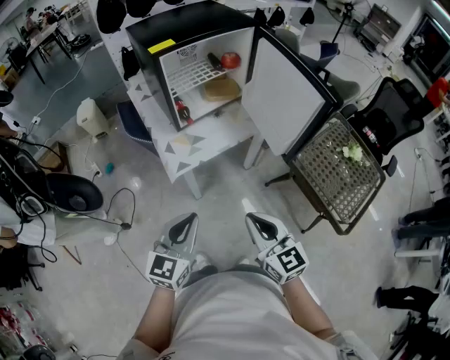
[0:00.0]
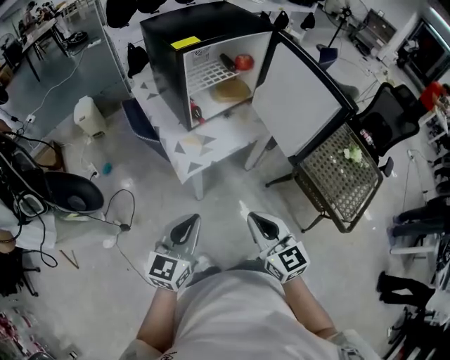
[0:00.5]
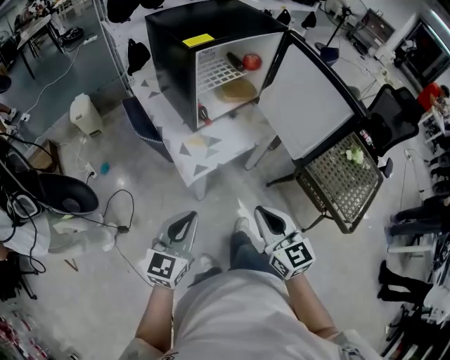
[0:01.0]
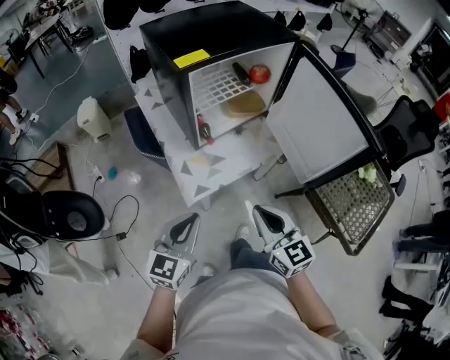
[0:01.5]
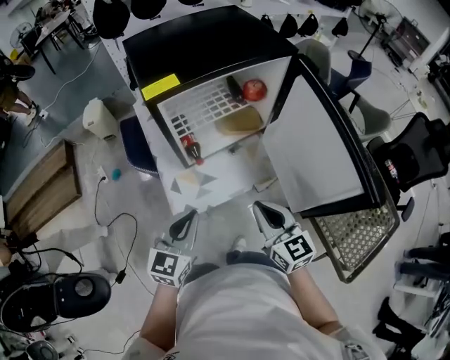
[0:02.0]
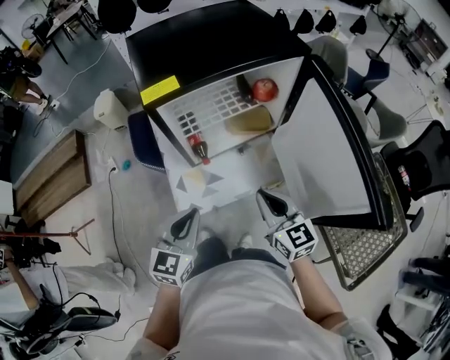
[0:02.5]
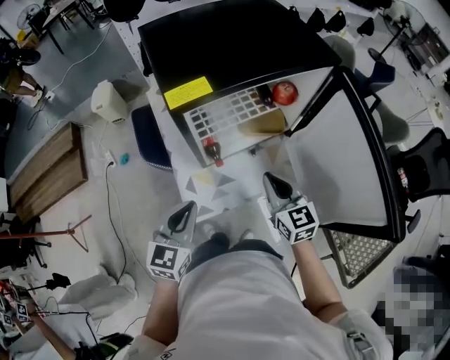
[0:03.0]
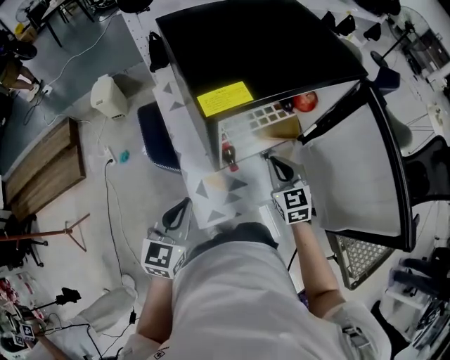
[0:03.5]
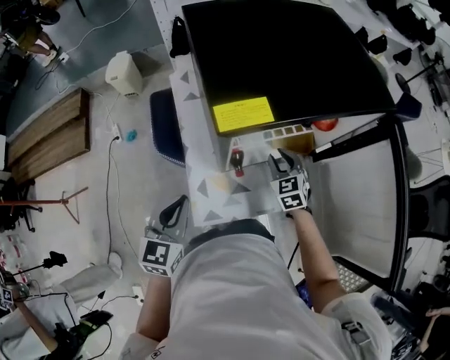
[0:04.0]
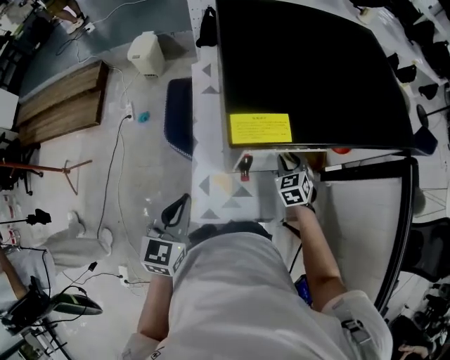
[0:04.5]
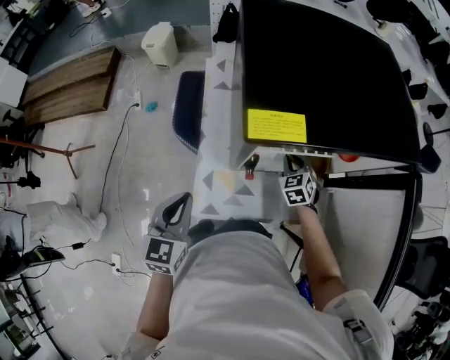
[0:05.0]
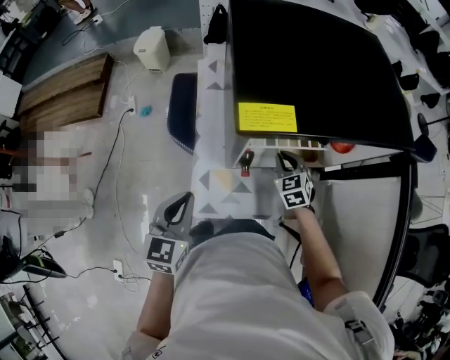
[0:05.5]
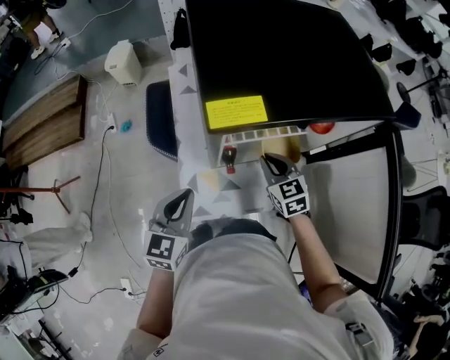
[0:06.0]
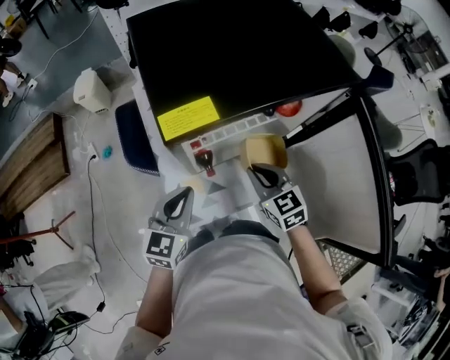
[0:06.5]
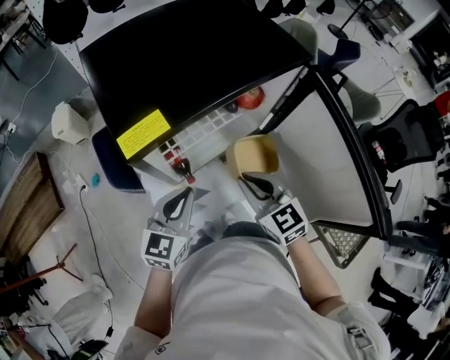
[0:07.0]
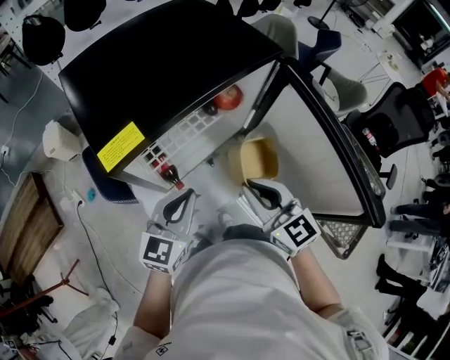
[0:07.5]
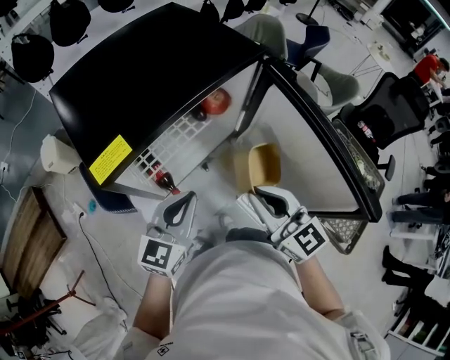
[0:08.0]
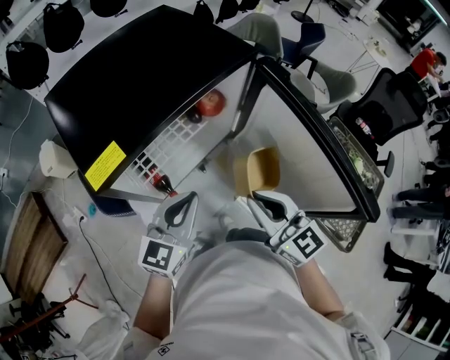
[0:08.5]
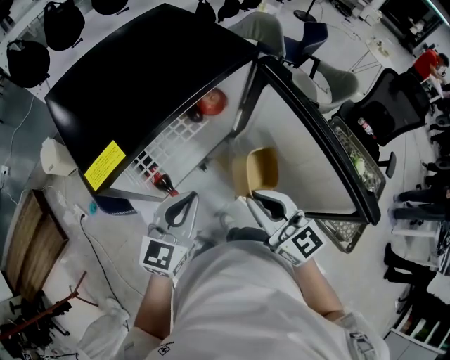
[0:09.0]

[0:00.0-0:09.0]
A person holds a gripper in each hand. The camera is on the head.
0:00.0 to 0:02.0: Both grippers move forward, some 25 cm.
0:02.0 to 0:04.5: The right gripper goes some 40 cm forward and downward, points its fingers roughly 30 degrees further downward, and opens, while the left gripper shifts roughly 20 cm to the left and forward, and swivels some 30 degrees.
0:04.5 to 0:07.0: The right gripper heads upward and backward, covering some 25 cm, and rotates about 30 degrees. Meanwhile the left gripper is displaced to the right by roughly 15 cm, and rotates approximately 30 degrees.
0:07.0 to 0:09.0: The left gripper shifts some 10 cm to the right, while the right gripper travels to the right and upward by about 10 cm, and changes its angle by approximately 20 degrees.

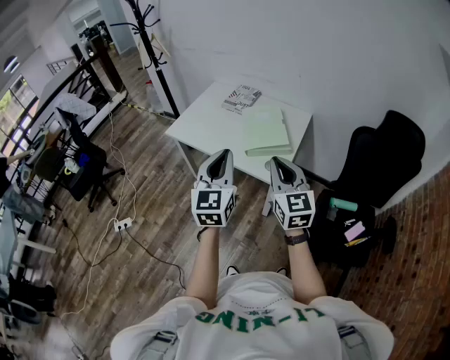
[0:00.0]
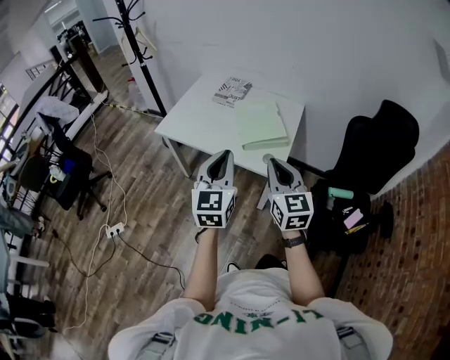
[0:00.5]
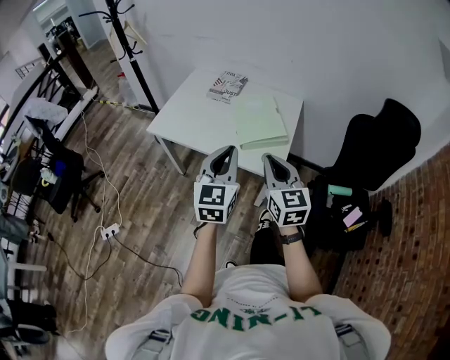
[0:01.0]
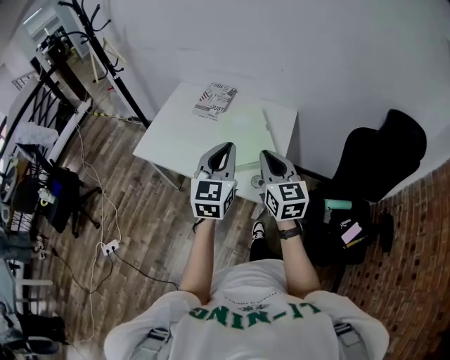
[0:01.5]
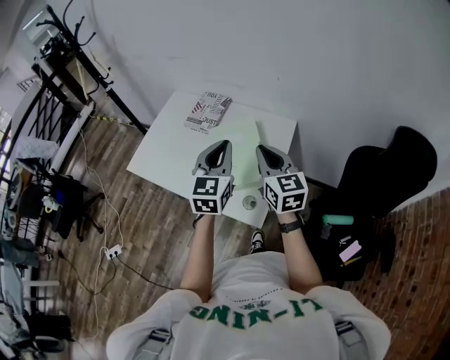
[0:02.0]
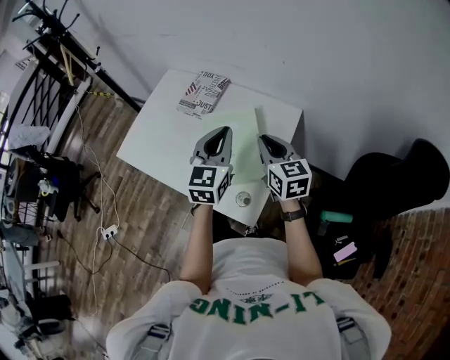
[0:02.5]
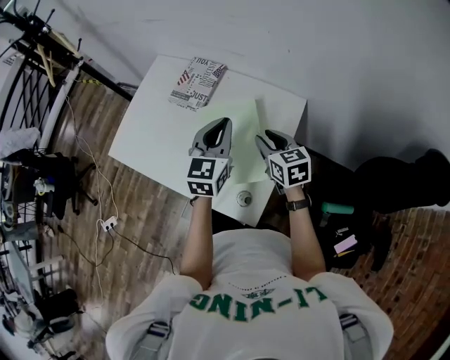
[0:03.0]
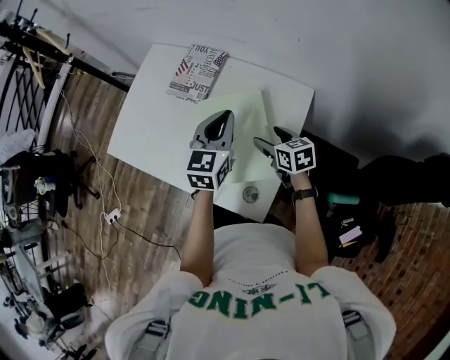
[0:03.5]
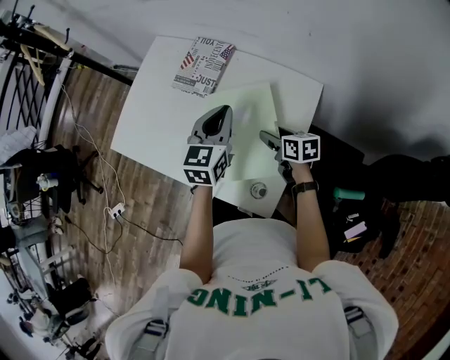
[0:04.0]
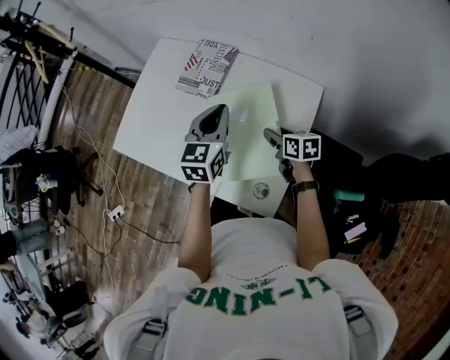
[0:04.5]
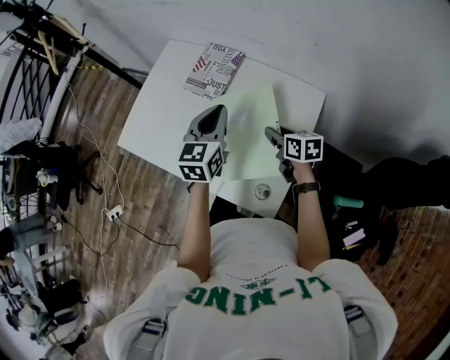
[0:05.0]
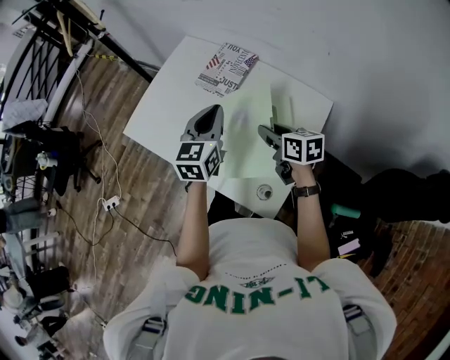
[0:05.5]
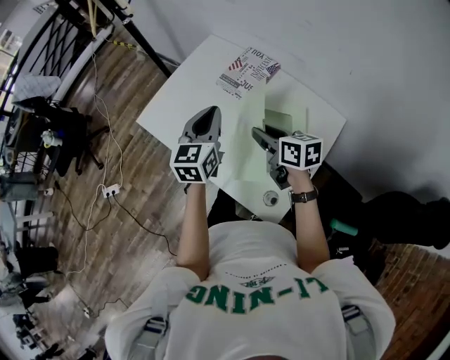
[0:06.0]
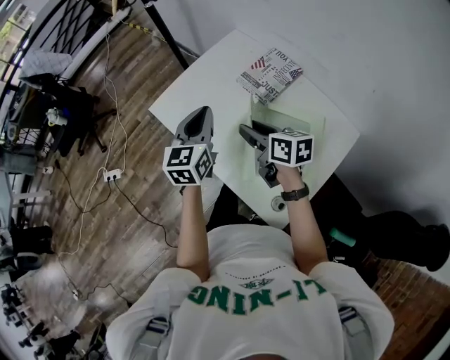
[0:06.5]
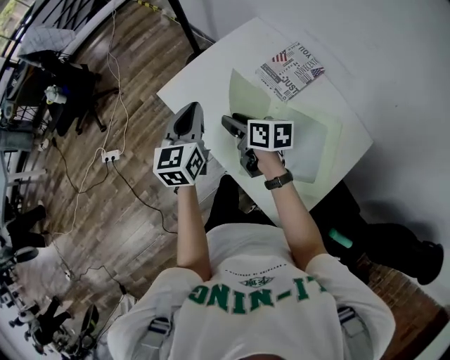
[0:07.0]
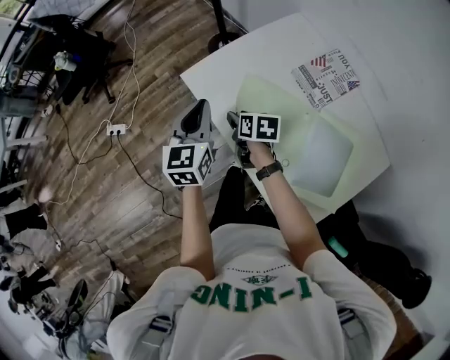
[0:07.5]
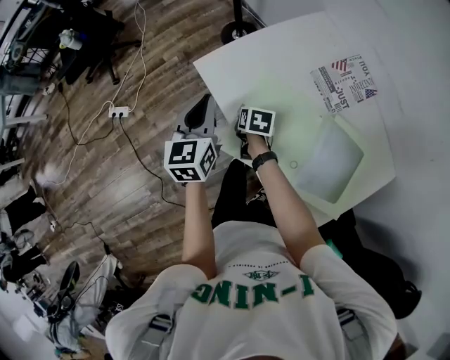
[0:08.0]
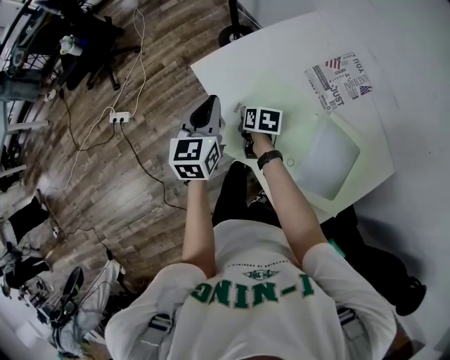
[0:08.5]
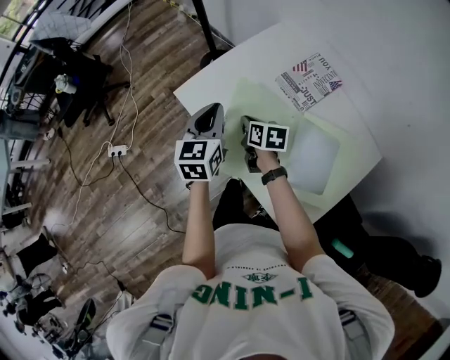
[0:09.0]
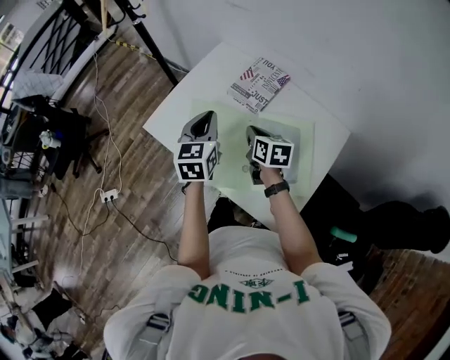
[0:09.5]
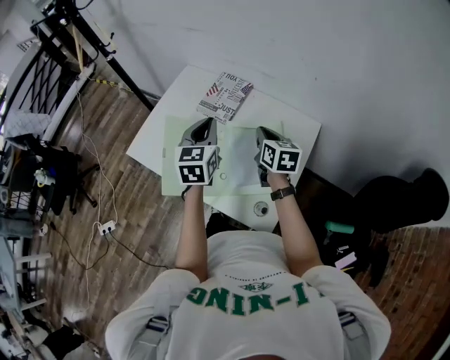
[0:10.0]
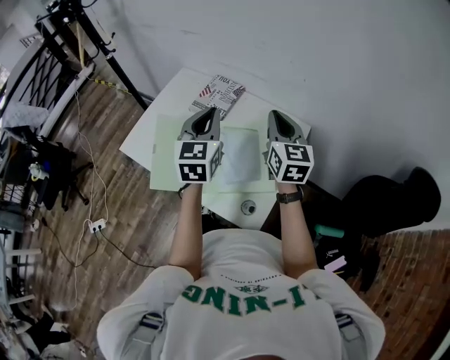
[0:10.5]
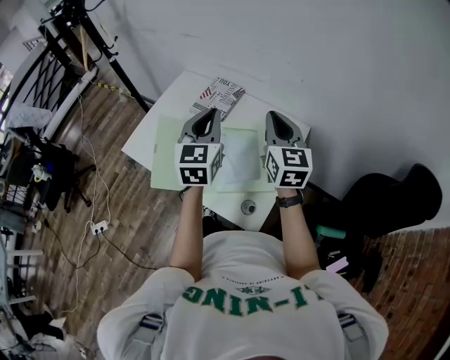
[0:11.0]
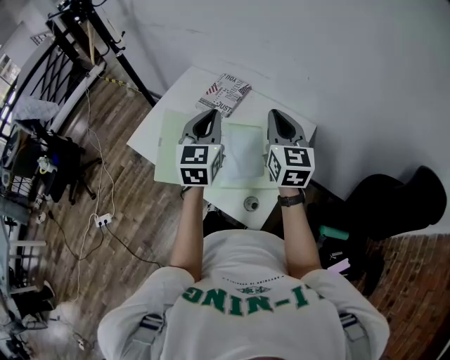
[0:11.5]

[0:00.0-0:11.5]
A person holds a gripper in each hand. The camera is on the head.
0:00.0 to 0:02.0: The grippers both shift forward by approximately 35 cm.
0:02.0 to 0:04.0: The right gripper goes about 35 cm downward and forward, changes its angle by about 50 degrees, and opens up. The left gripper heads forward and downward, covering some 25 cm.
0:04.0 to 0:06.0: The left gripper travels to the left by roughly 15 cm. The right gripper heads to the left and upward, covering about 20 cm, turns by some 20 degrees, and closes up.
0:06.0 to 0:07.5: The right gripper heads to the left, forward and downward, covering approximately 35 cm, and turns by some 20 degrees. Meanwhile the left gripper heads to the left and forward, covering roughly 25 cm, and rotates some 20 degrees.
0:07.5 to 0:09.5: The left gripper shifts by approximately 20 cm, and rotates about 20 degrees; the right gripper shifts by approximately 25 cm, swivels about 30 degrees, and closes.
0:09.5 to 0:11.5: The left gripper goes some 20 cm to the right, upward and backward. Meanwhile the right gripper moves upward, to the right and backward, about 30 cm, and turns by about 40 degrees.

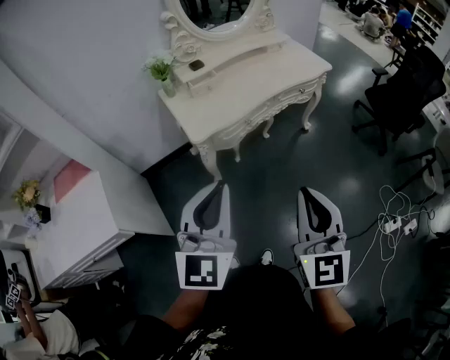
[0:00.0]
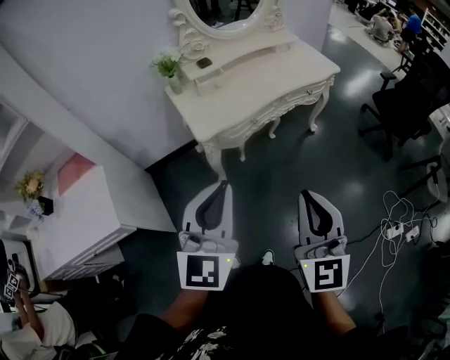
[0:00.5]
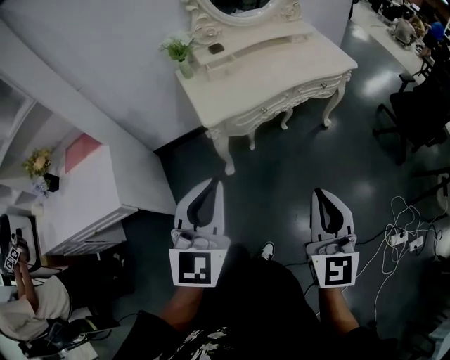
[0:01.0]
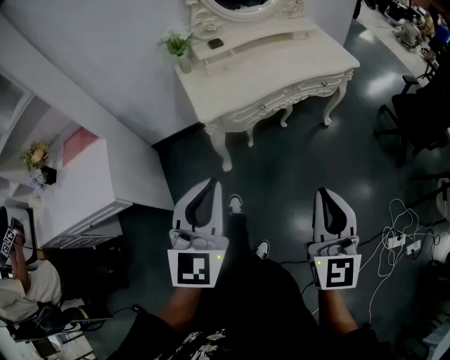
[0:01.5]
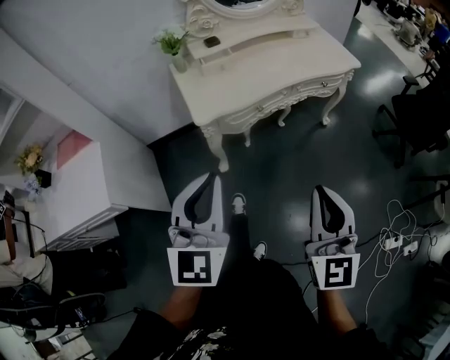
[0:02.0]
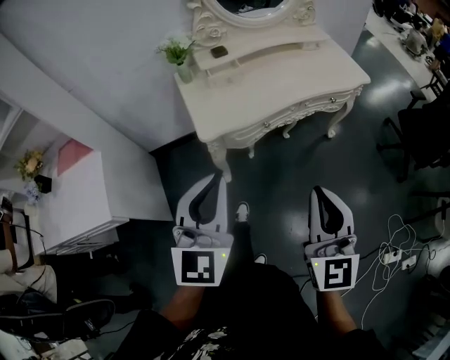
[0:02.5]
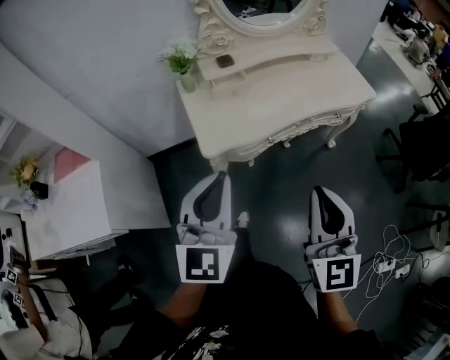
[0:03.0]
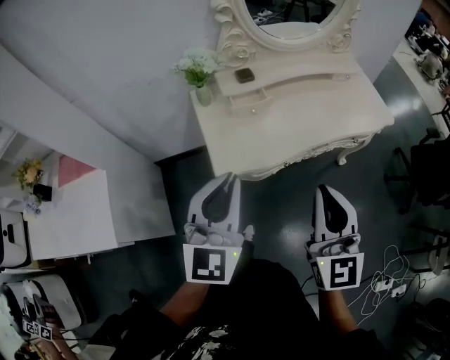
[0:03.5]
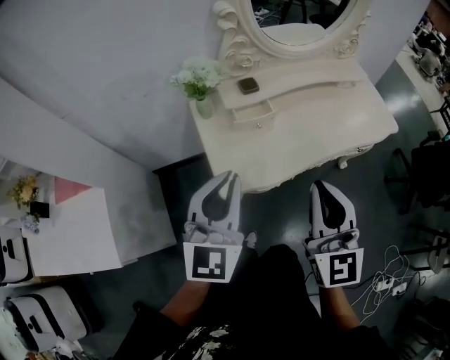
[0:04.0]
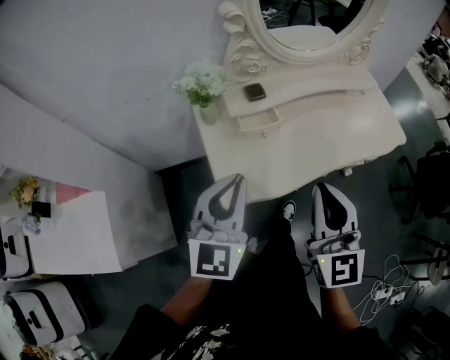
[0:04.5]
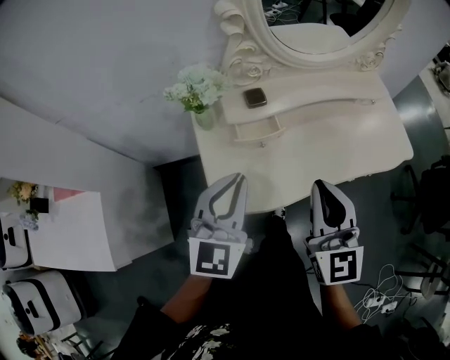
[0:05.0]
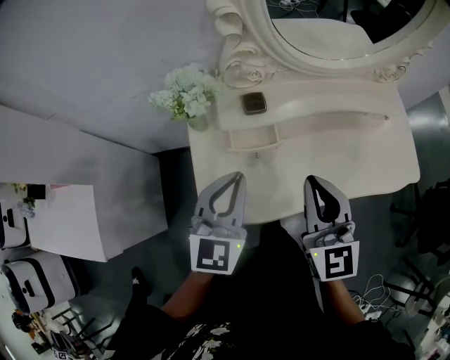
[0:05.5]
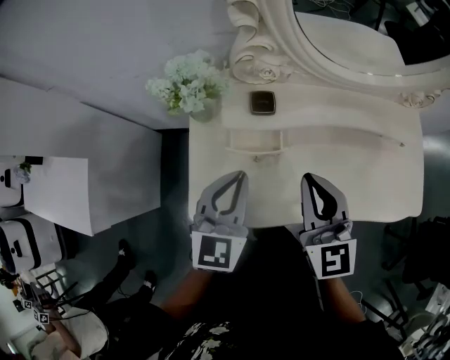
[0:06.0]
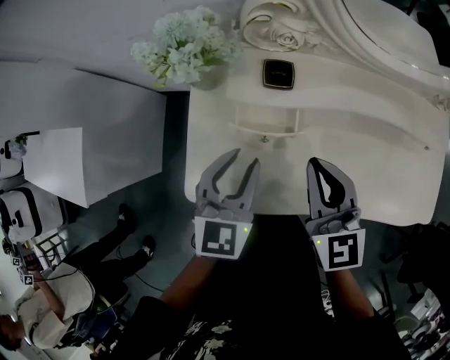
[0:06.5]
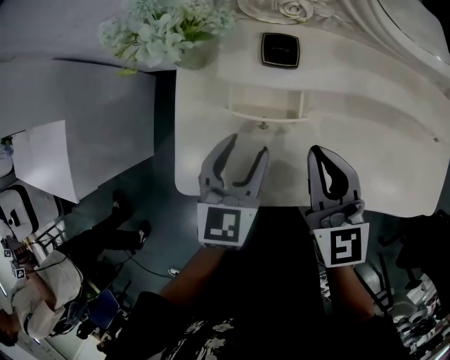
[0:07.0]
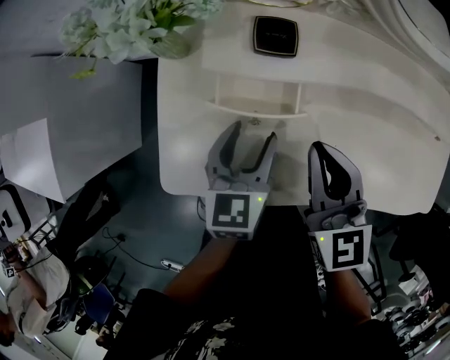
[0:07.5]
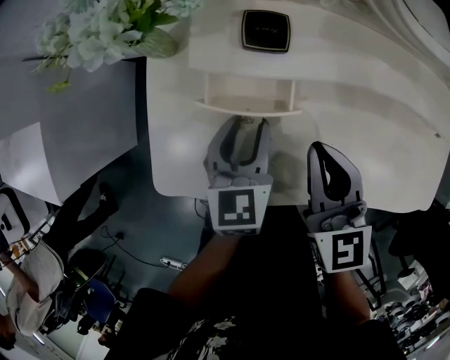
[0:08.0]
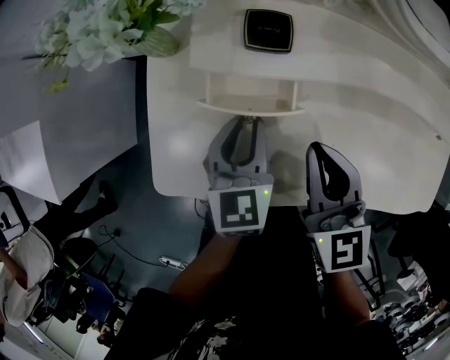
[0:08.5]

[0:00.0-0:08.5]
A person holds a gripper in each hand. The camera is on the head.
0:00.0 to 0:02.0: The right gripper goes about 5 cm to the right.
0:02.0 to 0:04.0: Both grippers travel together forward, about 30 cm.
0:04.0 to 0:06.5: The left gripper shifts by roughly 25 cm, swivels roughly 30 degrees, and opens its fingers. The right gripper shifts by about 30 cm, and changes its angle by roughly 40 degrees.
0:06.5 to 0:08.5: The left gripper is displaced downward by roughly 10 cm, rotates approximately 20 degrees, and opens, then closes once more, while the right gripper goes approximately 5 cm downward.
